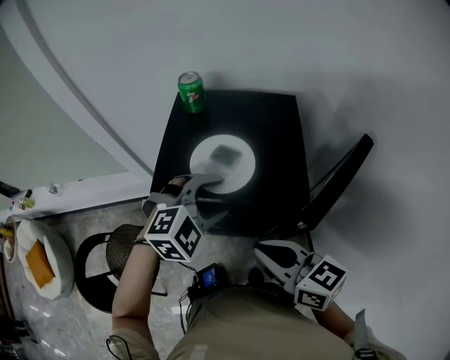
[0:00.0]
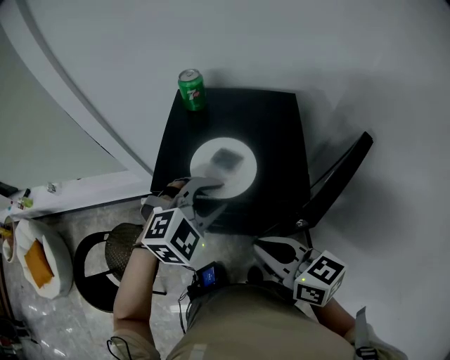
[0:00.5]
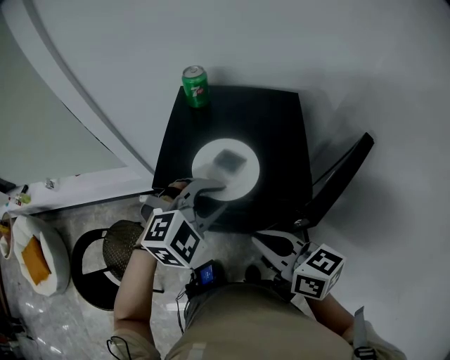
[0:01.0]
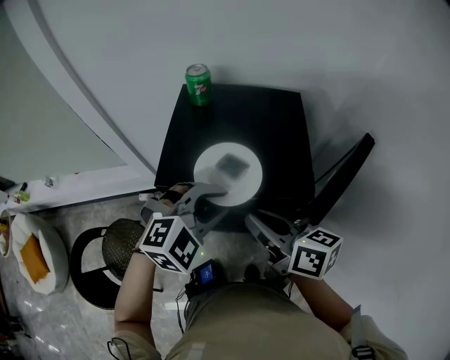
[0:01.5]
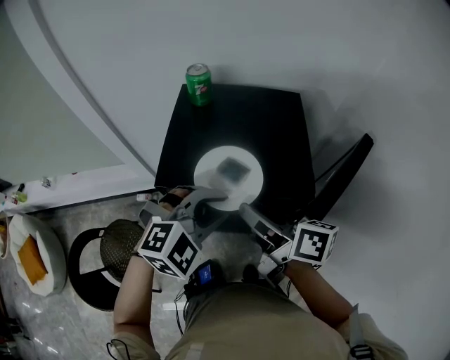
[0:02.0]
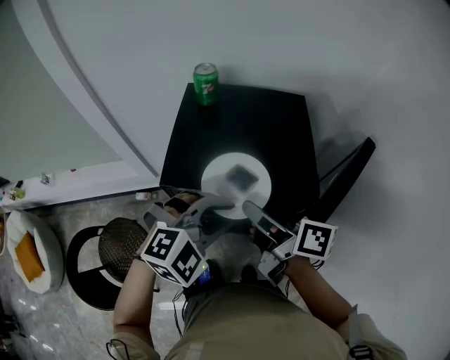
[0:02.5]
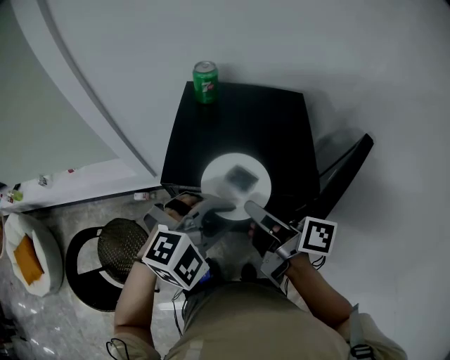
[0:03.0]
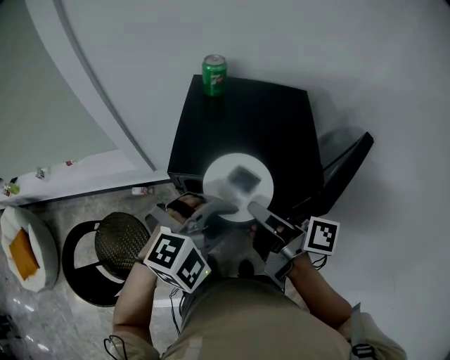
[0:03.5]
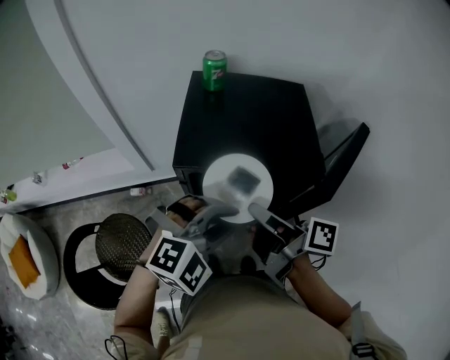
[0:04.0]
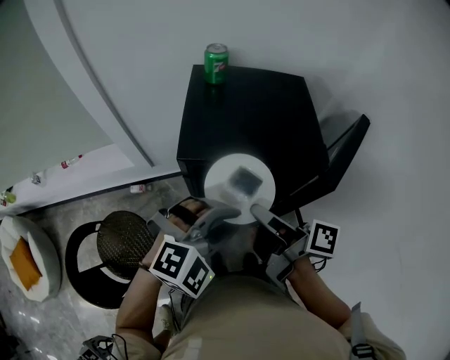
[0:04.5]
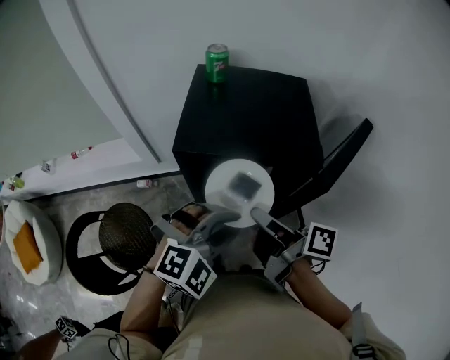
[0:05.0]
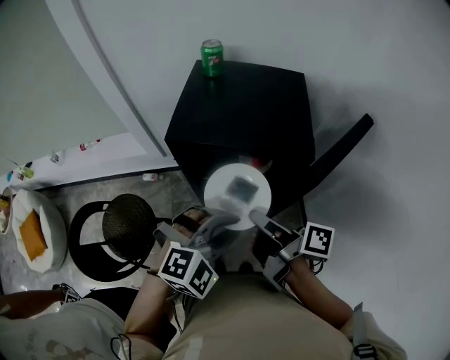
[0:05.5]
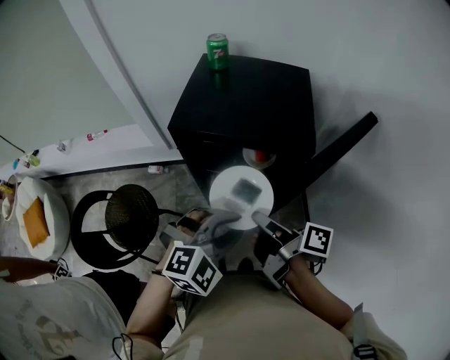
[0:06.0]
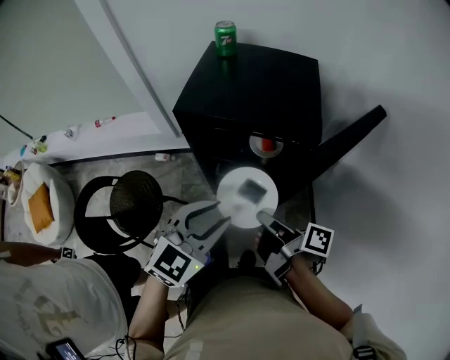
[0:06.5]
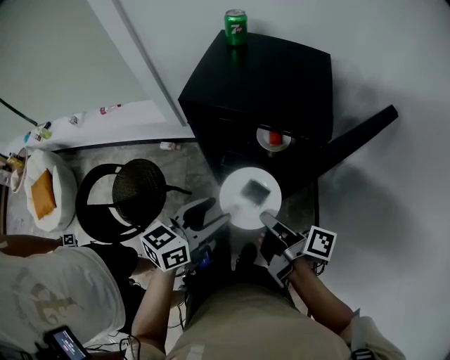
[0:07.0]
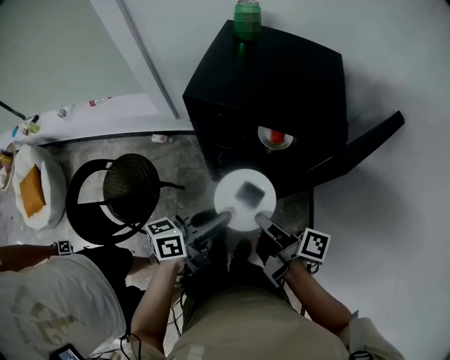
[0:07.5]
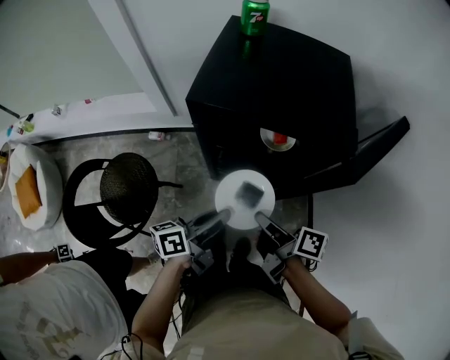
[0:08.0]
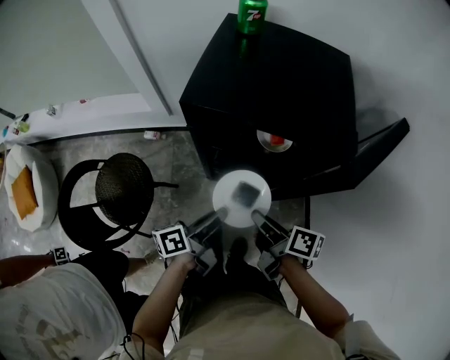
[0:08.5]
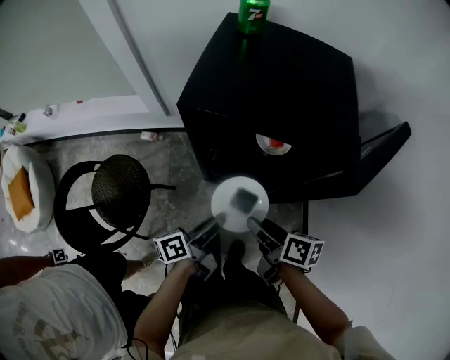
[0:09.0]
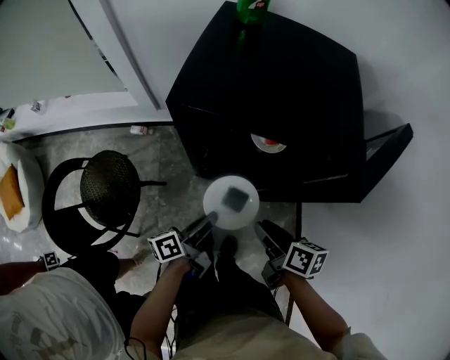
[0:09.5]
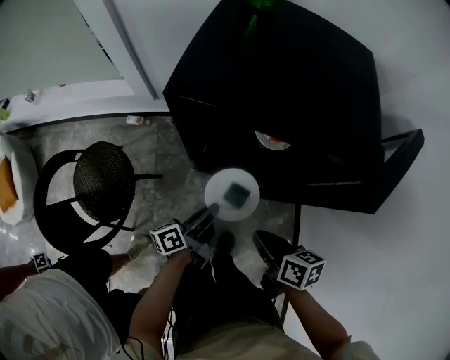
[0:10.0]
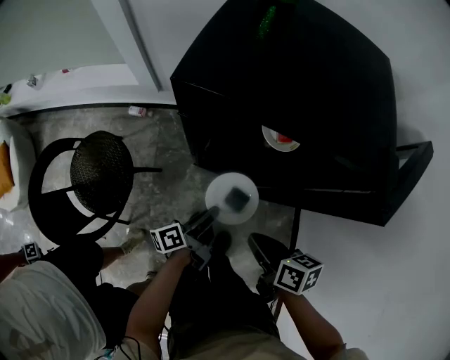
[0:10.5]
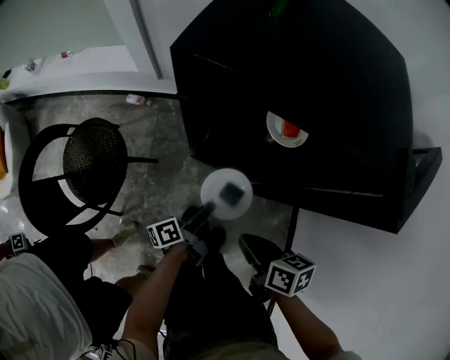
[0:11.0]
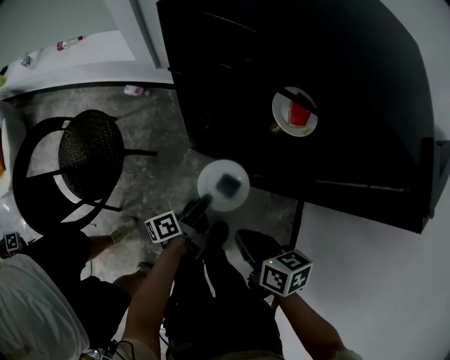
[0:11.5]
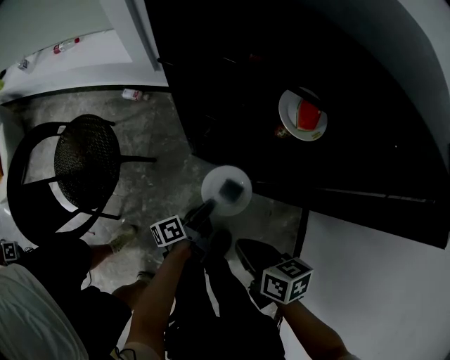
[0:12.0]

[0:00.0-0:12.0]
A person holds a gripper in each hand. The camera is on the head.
0.0 to 2.0 s: The left gripper closes up. Meanwhile the right gripper is displaced forward by roughly 10 cm, rotates some 30 degrees, and opens.
2.0 to 4.0 s: The right gripper is displaced backward by roughly 5 cm, and turns by roughly 20 degrees, while the left gripper goes about 10 cm backward.
4.0 to 6.0 s: The right gripper shifts approximately 10 cm backward, to the right and downward. The left gripper travels backward and to the right by about 10 cm.
6.0 to 8.0 s: The left gripper shifts some 15 cm downward and to the left, rotates around the line of its fingers by approximately 100 degrees, counterclockwise from behind, and opens, then closes again. Meanwhile the right gripper travels downward by approximately 10 cm.
8.0 to 10.0 s: The left gripper heads downward, covering roughly 15 cm; the right gripper moves downward, some 5 cm, swivels approximately 30 degrees, and opens, then closes once more.
10.0 to 12.0 s: Both grippers travel together downward, roughly 15 cm.

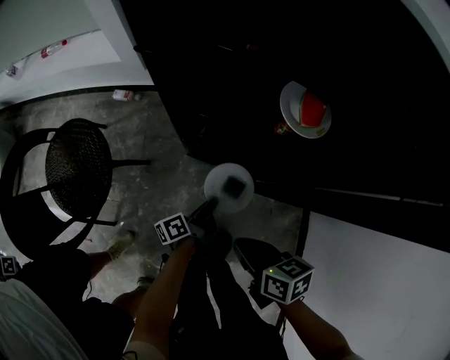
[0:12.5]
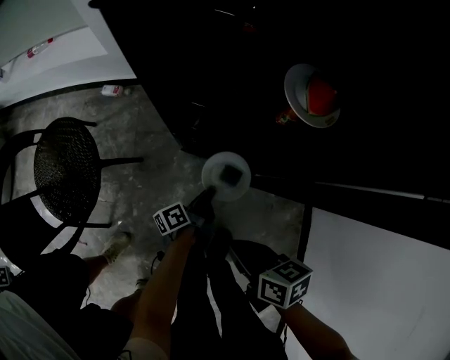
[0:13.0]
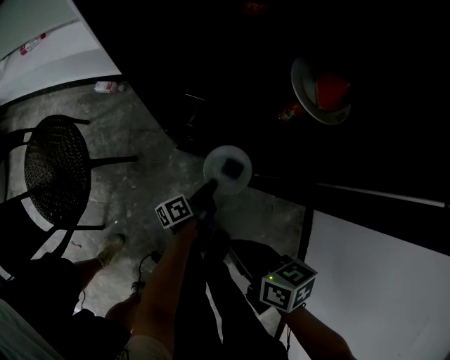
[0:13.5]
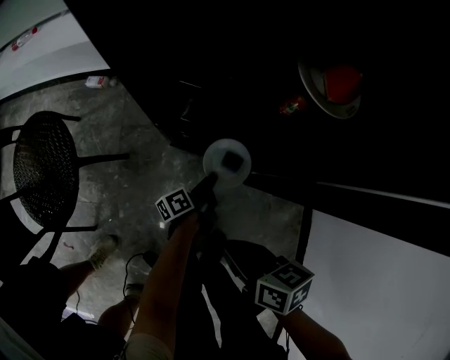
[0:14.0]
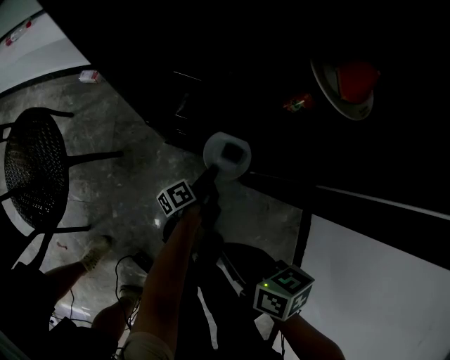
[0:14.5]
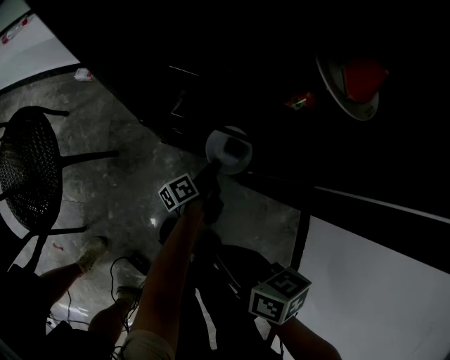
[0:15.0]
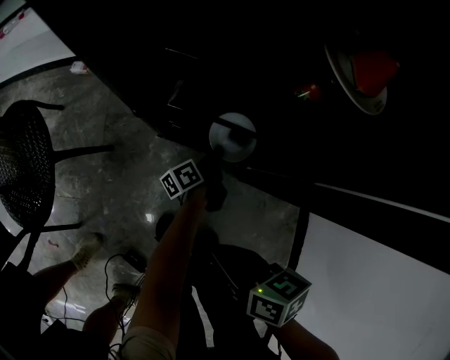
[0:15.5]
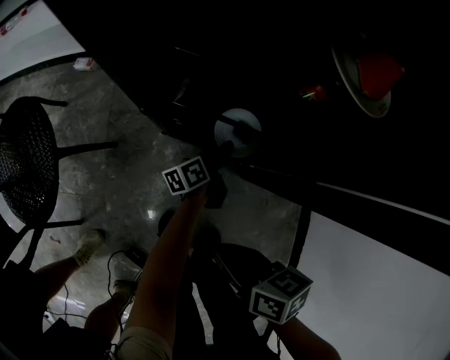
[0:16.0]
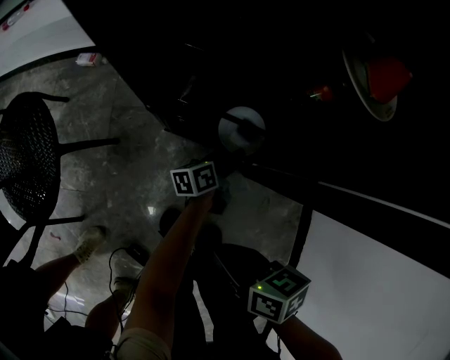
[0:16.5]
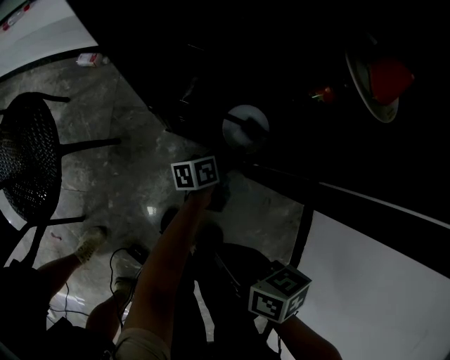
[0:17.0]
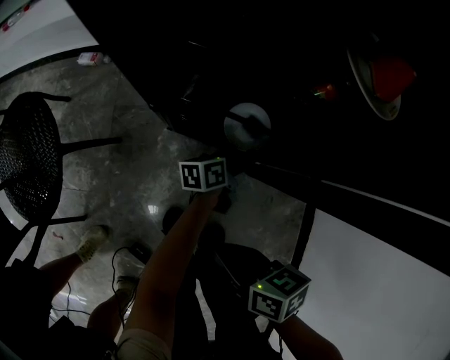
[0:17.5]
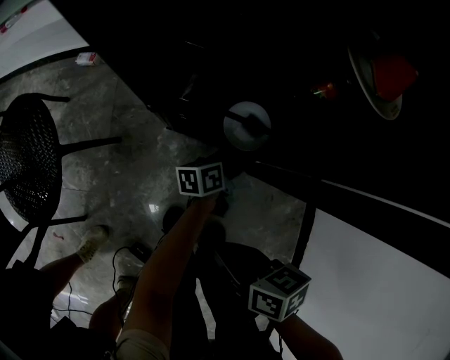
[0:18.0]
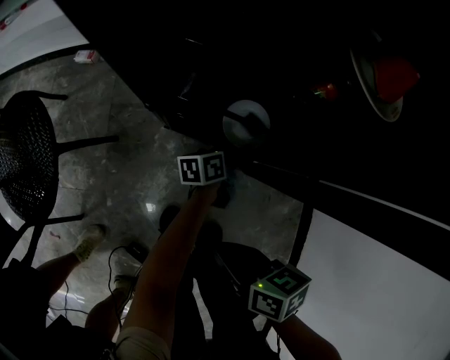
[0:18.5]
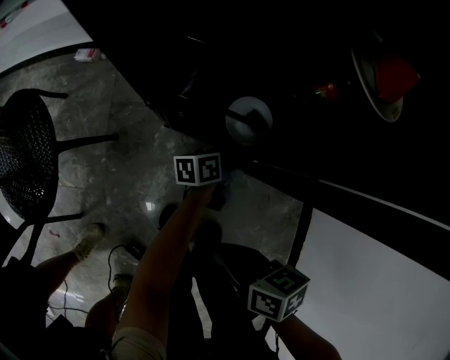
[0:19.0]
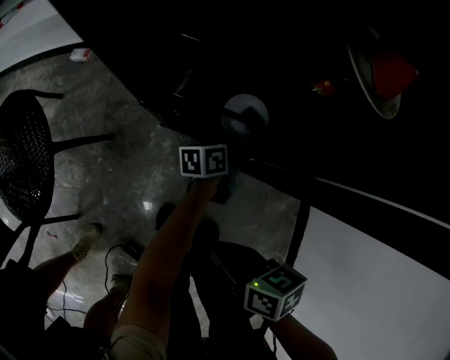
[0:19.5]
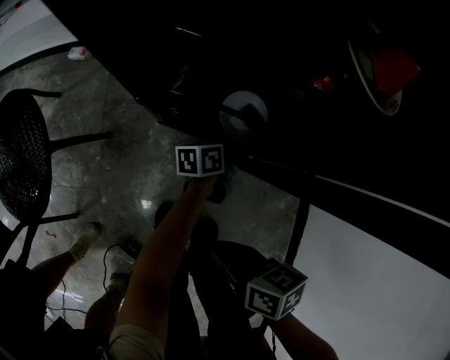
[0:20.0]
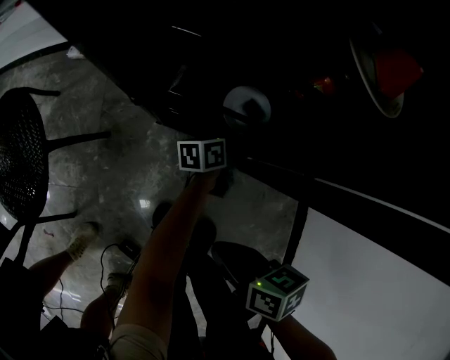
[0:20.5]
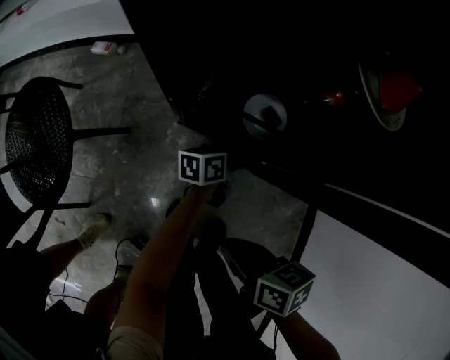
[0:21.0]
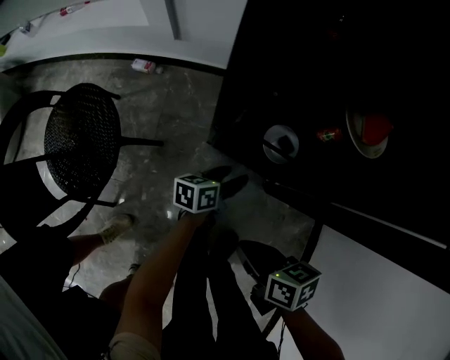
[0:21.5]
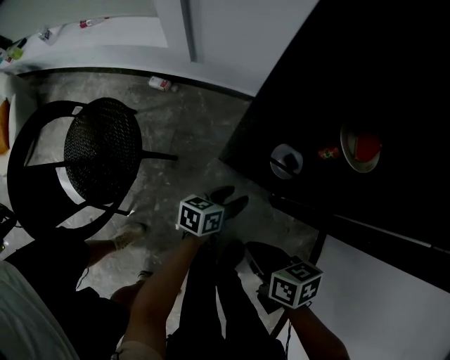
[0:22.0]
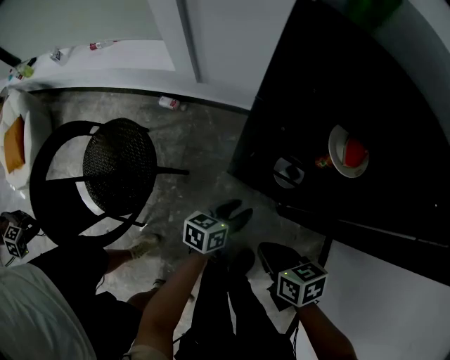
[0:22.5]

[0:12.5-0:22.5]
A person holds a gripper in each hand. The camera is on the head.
12.5 to 14.5 s: The left gripper moves downward, some 20 cm, while the right gripper goes some 10 cm downward.
14.5 to 16.5 s: The left gripper changes place by some 5 cm, changes its angle by some 20 degrees, and opens.
16.5 to 20.5 s: The grippers make only small movements.
20.5 to 22.5 s: The left gripper goes about 30 cm upward and to the left, and rotates some 20 degrees; the right gripper moves upward and forward, some 15 cm.

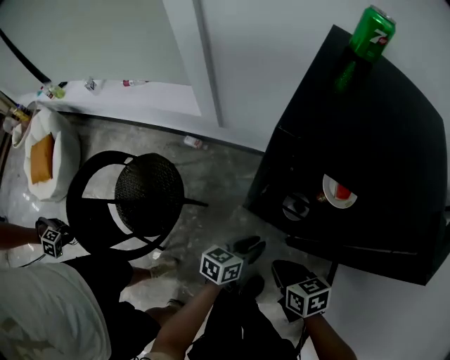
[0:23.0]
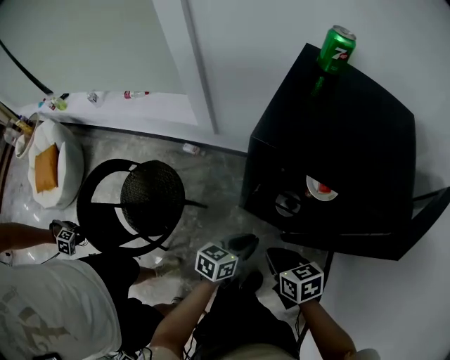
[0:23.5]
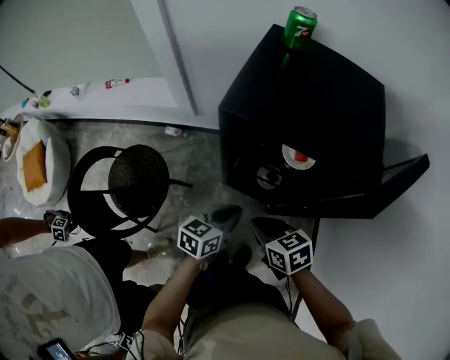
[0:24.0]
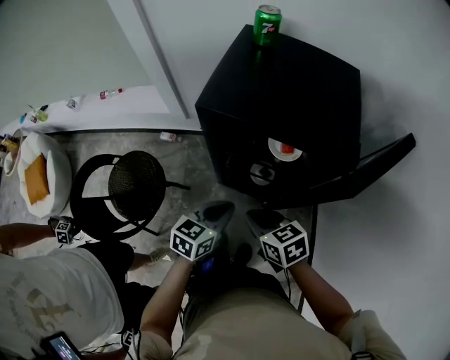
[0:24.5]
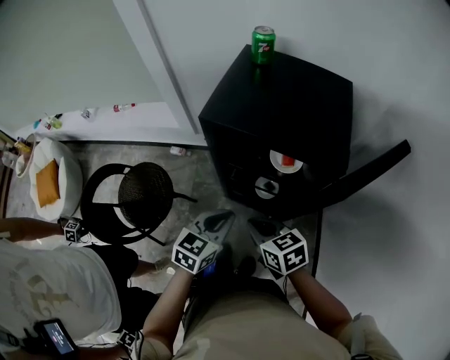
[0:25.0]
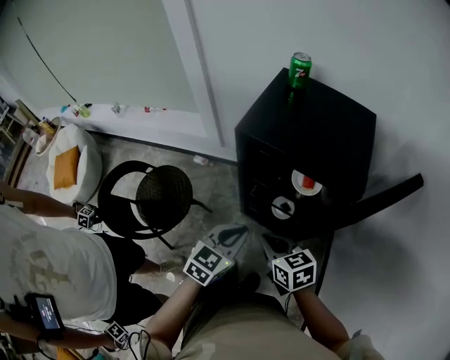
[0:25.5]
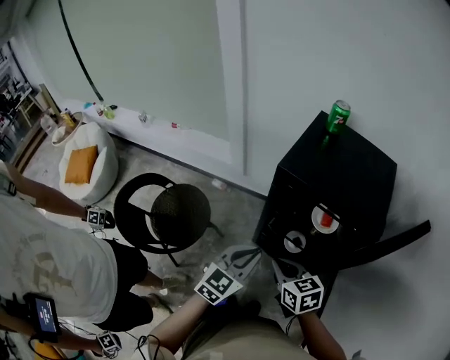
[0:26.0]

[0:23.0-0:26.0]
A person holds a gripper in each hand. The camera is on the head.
23.0 to 24.5 s: Both grippers travel together upward, roughly 15 cm. The left gripper changes its angle by roughly 20 degrees.
24.5 to 26.0 s: The right gripper ends up approximately 5 cm from where it was. Meanwhile the left gripper is displaced upward and to the left by approximately 10 cm, and rotates about 30 degrees.

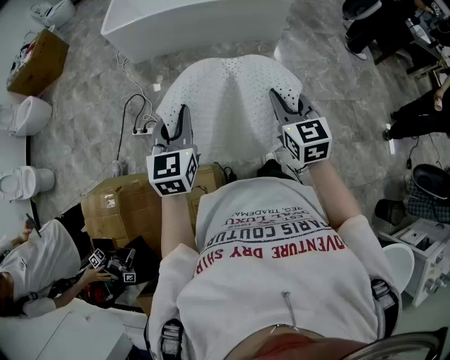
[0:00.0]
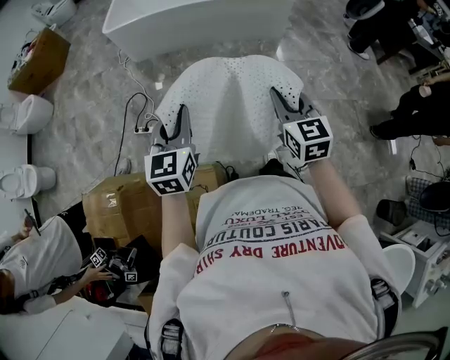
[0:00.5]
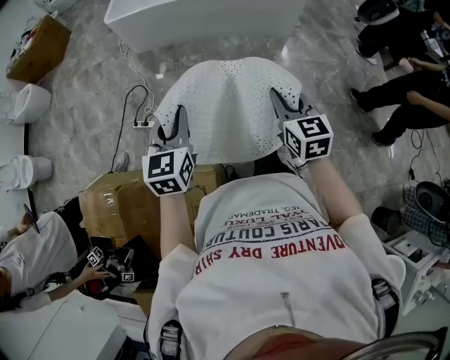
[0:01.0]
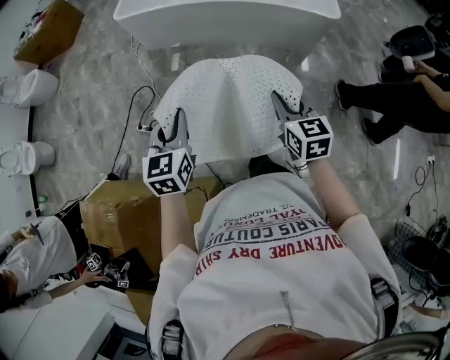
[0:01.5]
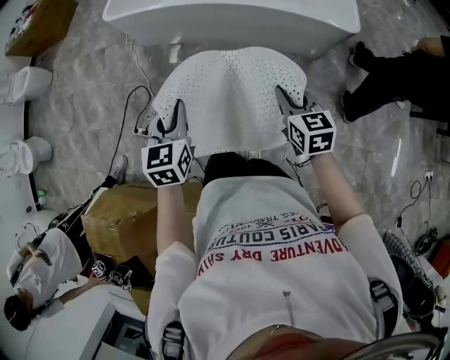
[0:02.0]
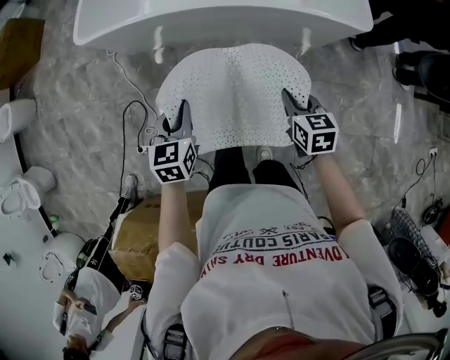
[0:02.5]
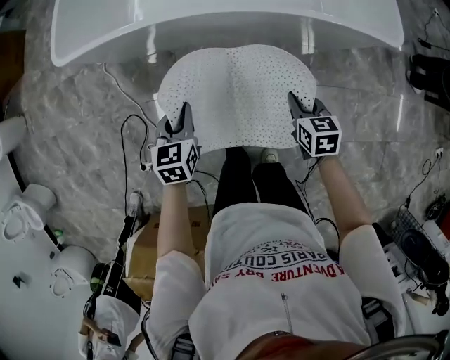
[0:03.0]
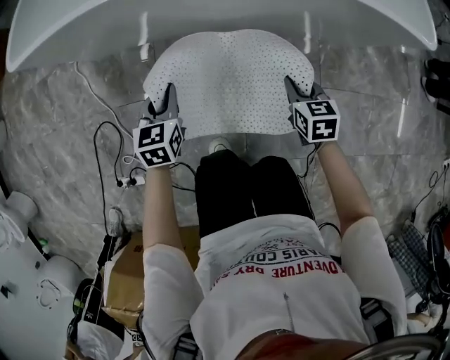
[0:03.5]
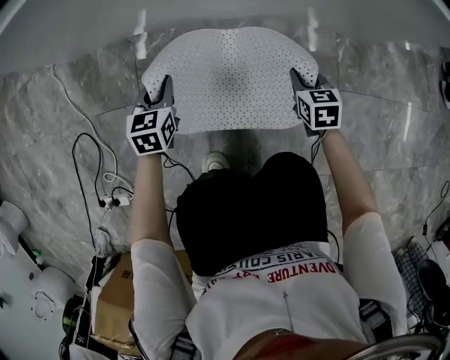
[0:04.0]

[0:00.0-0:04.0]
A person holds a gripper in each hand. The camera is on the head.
0.0 to 2.0 s: The pair of grippers is taken forward, approximately 40 cm. The right gripper swivels about 20 degrees. The left gripper rotates about 20 degrees.
2.0 to 4.0 s: Both grippers move downward and forward, some 80 cm. The right gripper changes its angle by about 20 degrees.
